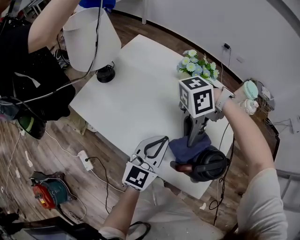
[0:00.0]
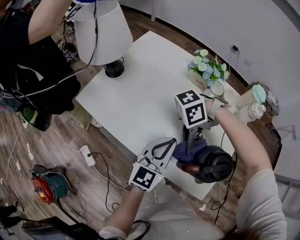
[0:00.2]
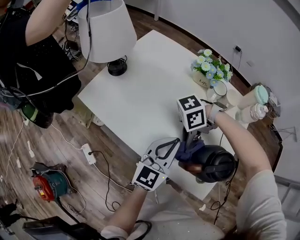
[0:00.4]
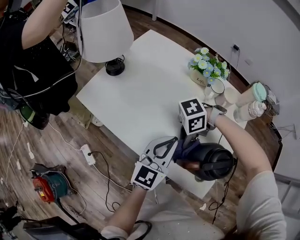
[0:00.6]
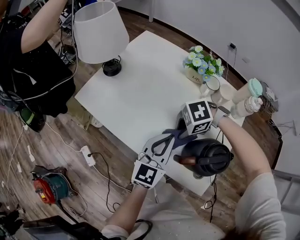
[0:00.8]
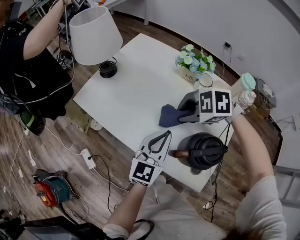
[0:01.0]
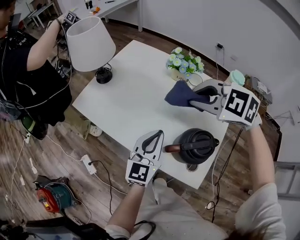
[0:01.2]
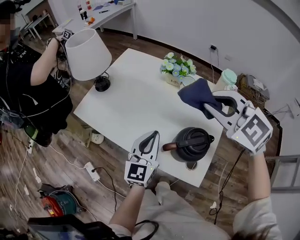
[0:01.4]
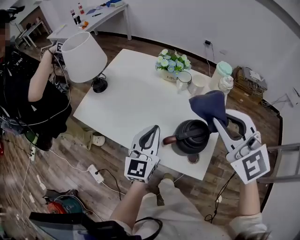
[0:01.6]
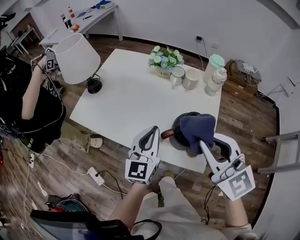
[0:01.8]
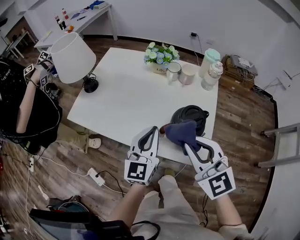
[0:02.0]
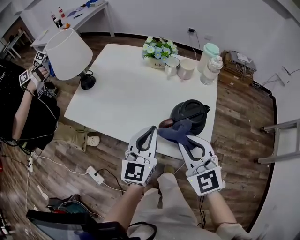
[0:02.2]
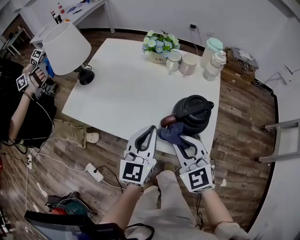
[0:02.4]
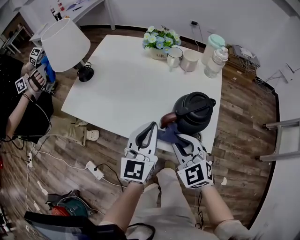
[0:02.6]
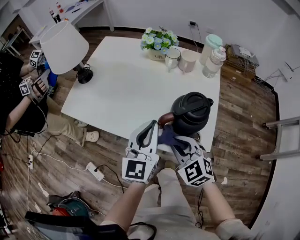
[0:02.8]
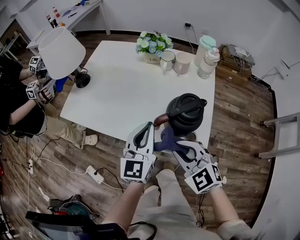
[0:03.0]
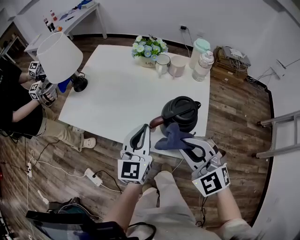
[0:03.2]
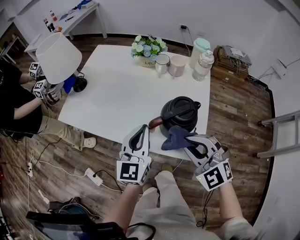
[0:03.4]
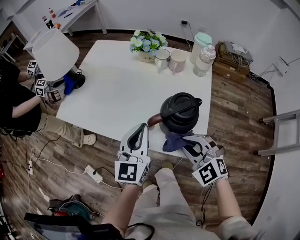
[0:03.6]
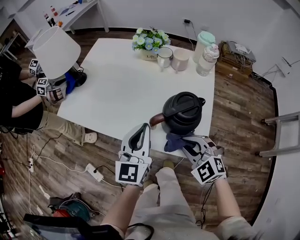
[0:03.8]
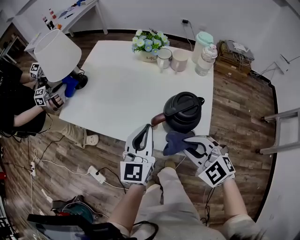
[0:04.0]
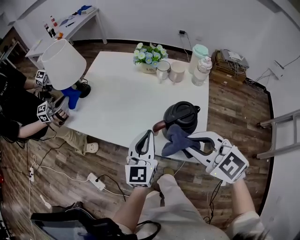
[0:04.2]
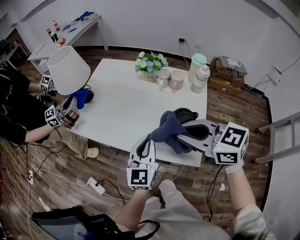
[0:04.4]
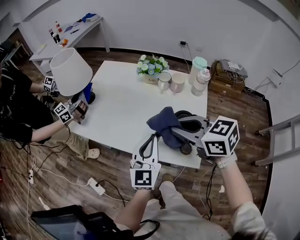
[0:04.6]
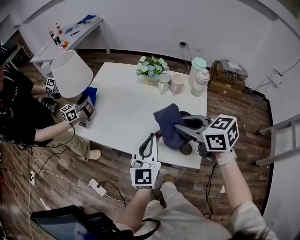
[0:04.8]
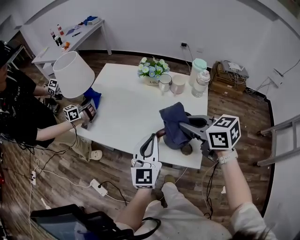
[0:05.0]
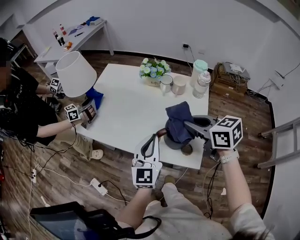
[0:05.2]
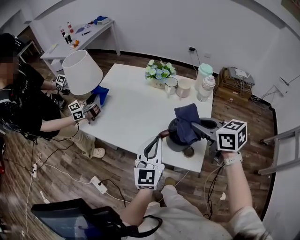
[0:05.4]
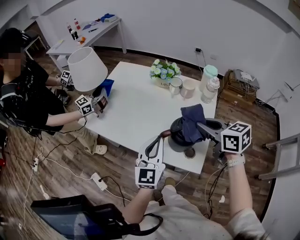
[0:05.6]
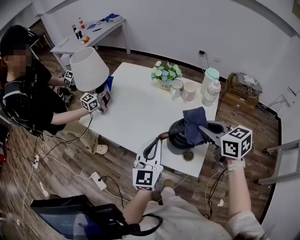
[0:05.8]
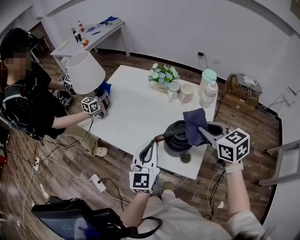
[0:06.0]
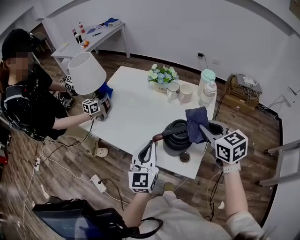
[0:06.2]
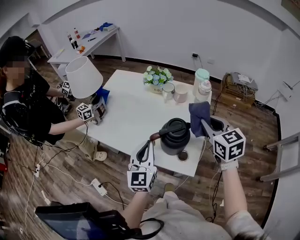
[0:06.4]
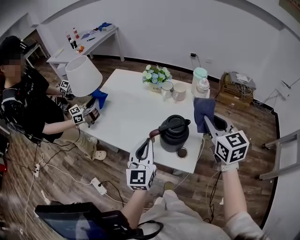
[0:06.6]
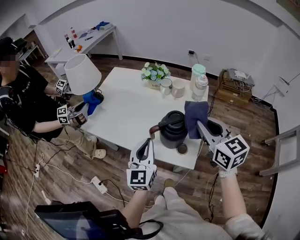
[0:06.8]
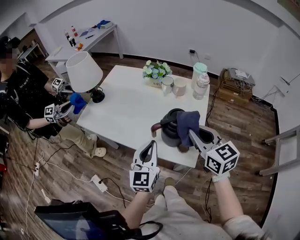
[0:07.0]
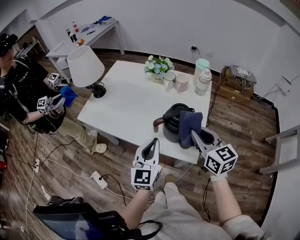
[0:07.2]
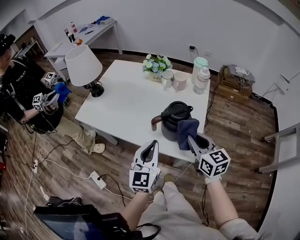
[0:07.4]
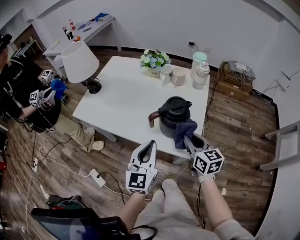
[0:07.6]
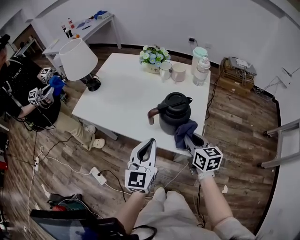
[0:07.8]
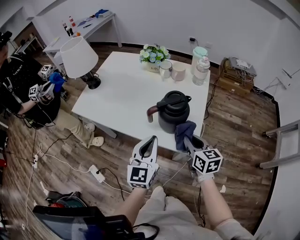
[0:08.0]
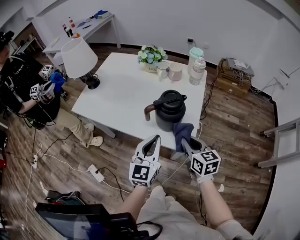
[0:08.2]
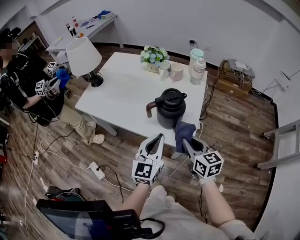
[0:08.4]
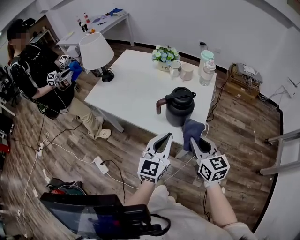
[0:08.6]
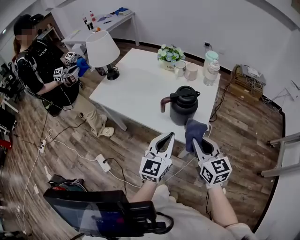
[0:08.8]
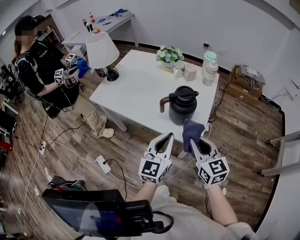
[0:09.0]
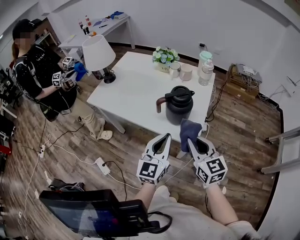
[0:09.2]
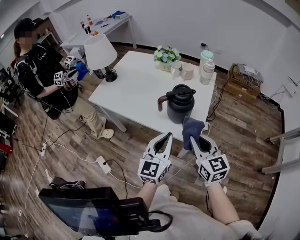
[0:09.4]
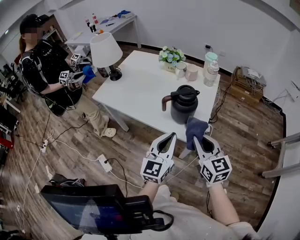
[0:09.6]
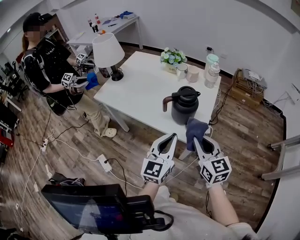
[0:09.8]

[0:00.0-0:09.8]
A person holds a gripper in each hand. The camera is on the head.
0:00.0 to 0:01.4: The right gripper shifts approximately 15 cm upward, and changes its angle by roughly 110 degrees.
0:01.4 to 0:02.8: The right gripper travels downward and backward by approximately 30 cm, and rotates approximately 30 degrees. The left gripper travels backward by roughly 5 cm.
0:02.8 to 0:04.2: The right gripper goes up and down, some 15 cm each way, reversing 2 times.
0:04.2 to 0:05.6: The right gripper goes some 10 cm to the right and forward, and swivels some 40 degrees.
0:05.6 to 0:07.0: The right gripper travels backward by roughly 5 cm, travels to the right and back again, some 10 cm each way, and rotates some 20 degrees.
0:07.0 to 0:08.4: The left gripper moves backward and to the right, about 10 cm; the right gripper is displaced downward and backward by approximately 15 cm.
0:08.4 to 0:09.8: The right gripper heads upward, covering roughly 5 cm; the left gripper shifts some 5 cm backward.

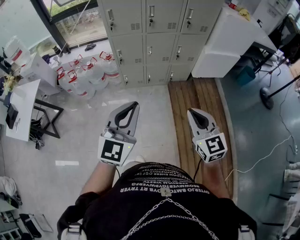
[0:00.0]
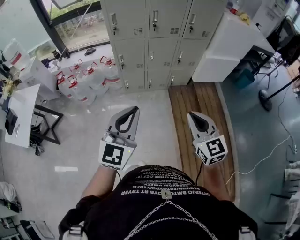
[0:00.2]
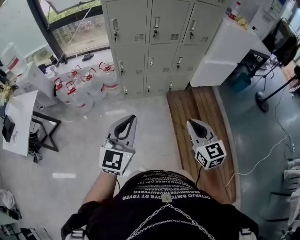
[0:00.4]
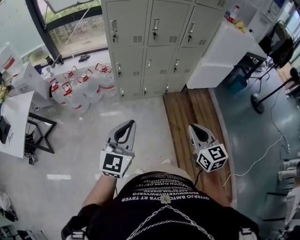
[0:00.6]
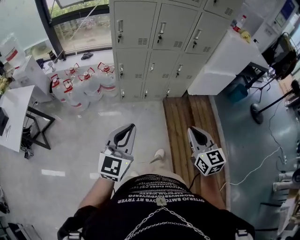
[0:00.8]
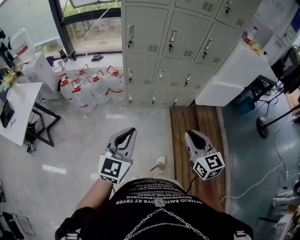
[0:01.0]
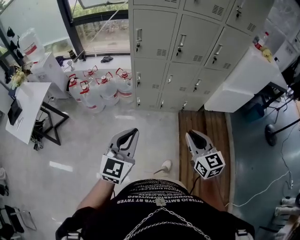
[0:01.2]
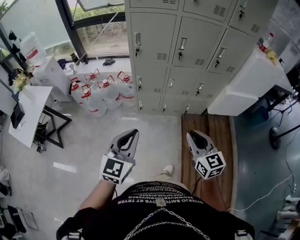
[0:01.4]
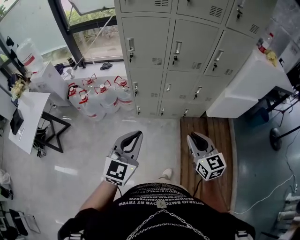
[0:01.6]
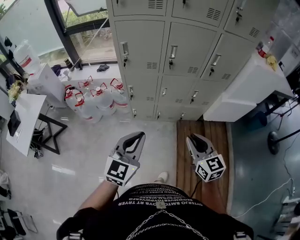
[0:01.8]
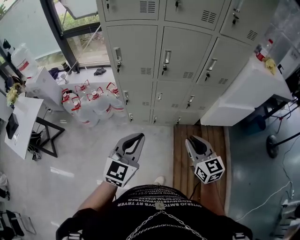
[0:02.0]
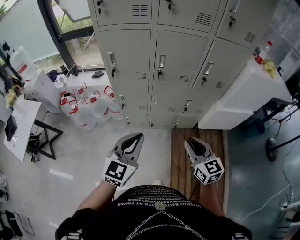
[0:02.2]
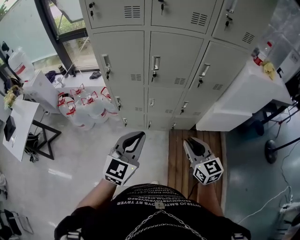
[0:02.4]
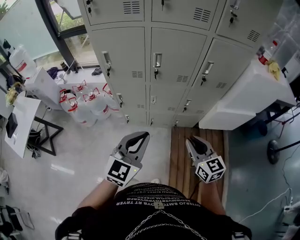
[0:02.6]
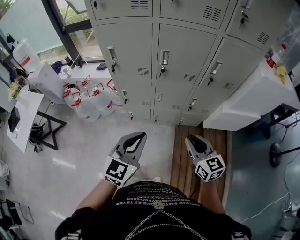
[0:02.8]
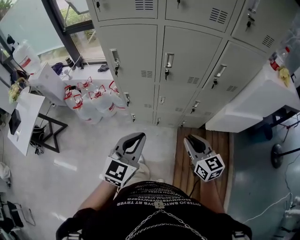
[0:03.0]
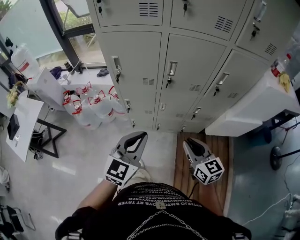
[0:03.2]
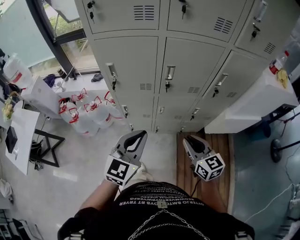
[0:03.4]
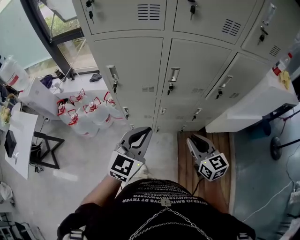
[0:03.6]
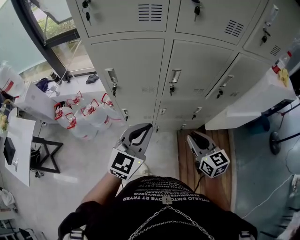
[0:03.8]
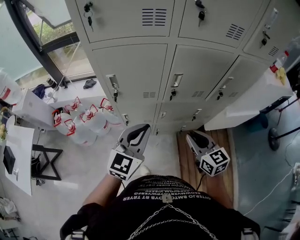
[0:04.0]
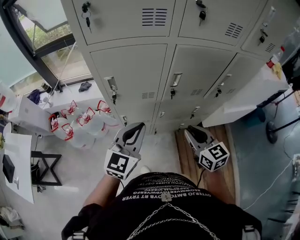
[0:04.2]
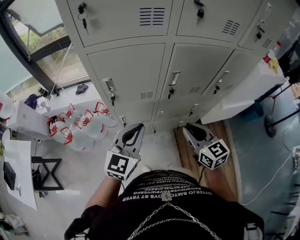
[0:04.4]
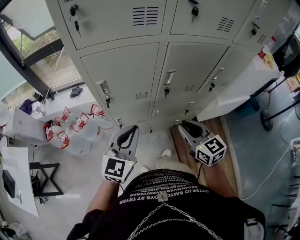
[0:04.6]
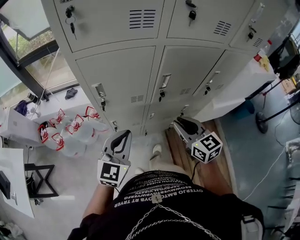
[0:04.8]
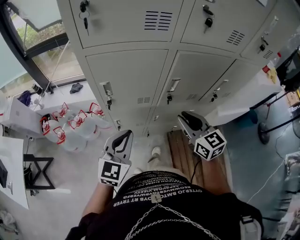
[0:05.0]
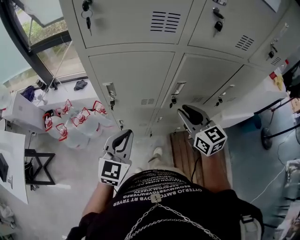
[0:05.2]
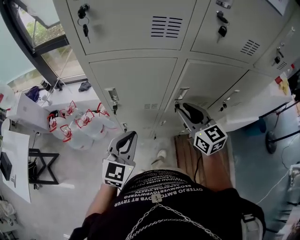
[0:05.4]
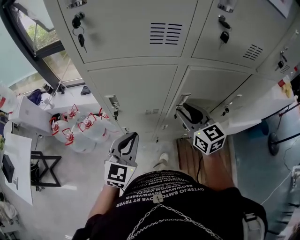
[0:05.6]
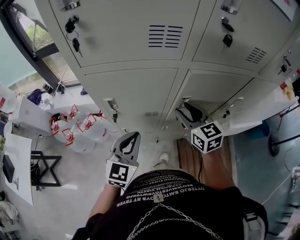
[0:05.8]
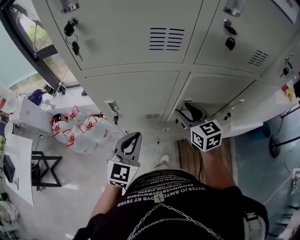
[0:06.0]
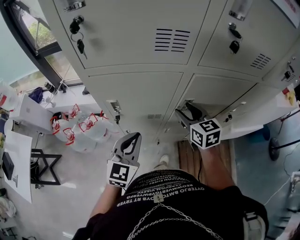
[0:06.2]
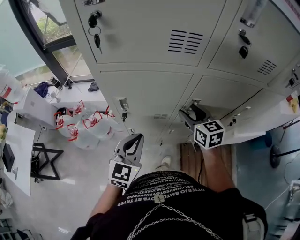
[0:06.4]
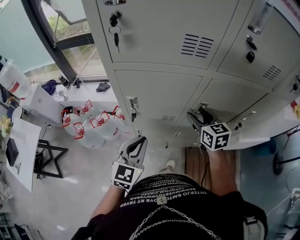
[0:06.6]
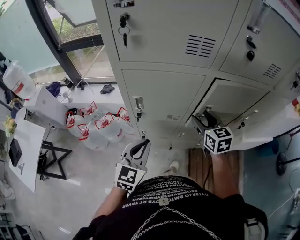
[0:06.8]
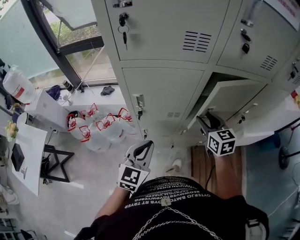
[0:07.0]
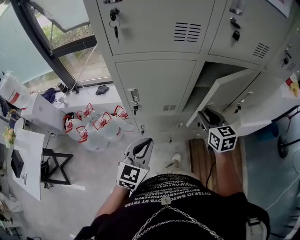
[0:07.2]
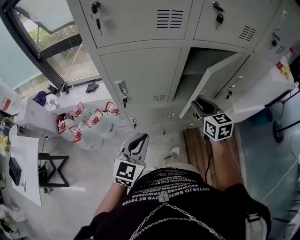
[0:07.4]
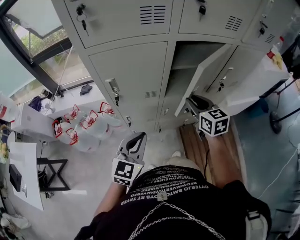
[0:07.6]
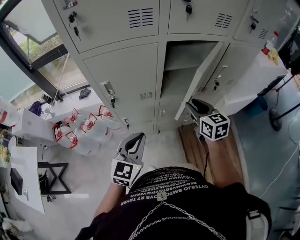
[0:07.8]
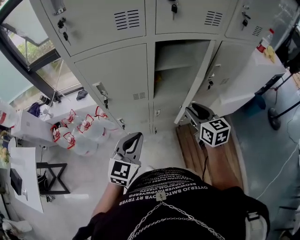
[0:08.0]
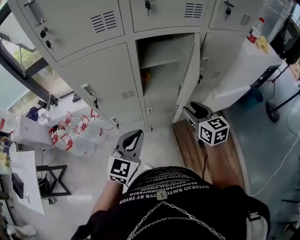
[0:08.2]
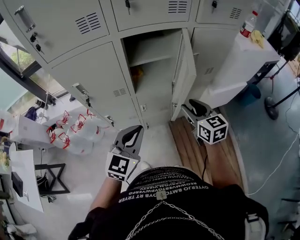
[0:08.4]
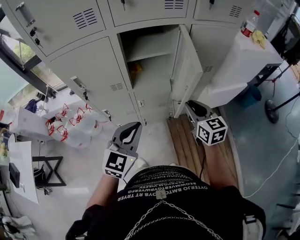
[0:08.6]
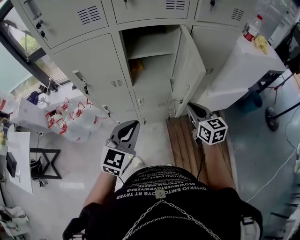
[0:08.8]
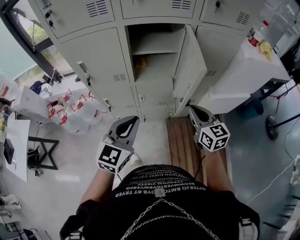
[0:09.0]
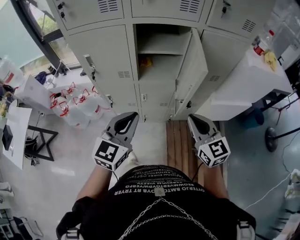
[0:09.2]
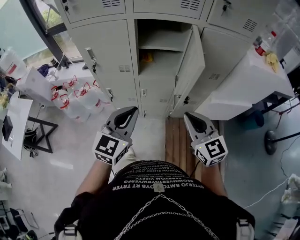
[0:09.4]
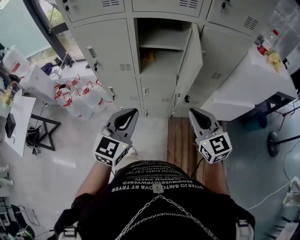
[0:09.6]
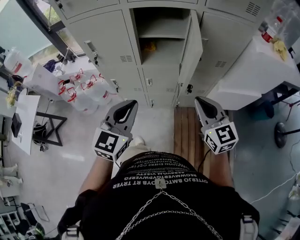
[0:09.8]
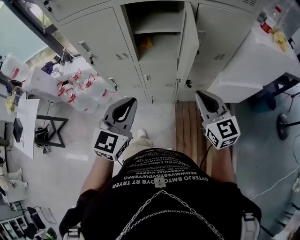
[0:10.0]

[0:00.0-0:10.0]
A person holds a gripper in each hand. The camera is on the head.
0:00.0 to 0:01.4: The right gripper heads forward and to the left, covering roughly 20 cm, while the left gripper travels forward, to the left and downward by about 20 cm.
0:01.4 to 0:02.8: The two grippers go roughly 25 cm forward and to the right.
0:02.8 to 0:04.2: Both grippers move forward and to the left, about 25 cm.
0:04.2 to 0:05.8: The right gripper moves forward, some 20 cm, and opens. The left gripper moves forward, about 10 cm.
0:05.8 to 0:07.2: Both grippers travel together backward, approximately 5 cm.
0:07.2 to 0:08.6: The left gripper travels to the right by approximately 20 cm, while the right gripper travels to the right and backward by about 25 cm.
0:08.6 to 0:10.0: The left gripper moves approximately 5 cm, while the right gripper heads backward, covering roughly 5 cm, and turns by about 20 degrees.

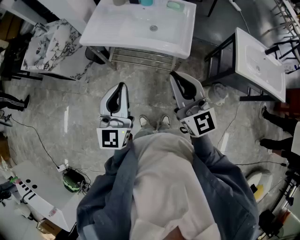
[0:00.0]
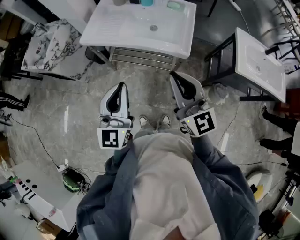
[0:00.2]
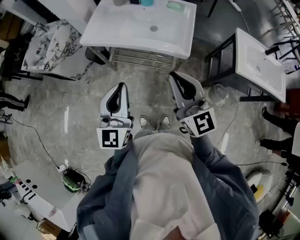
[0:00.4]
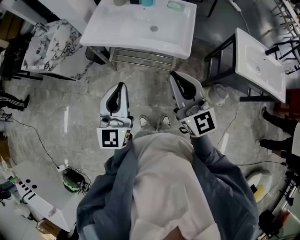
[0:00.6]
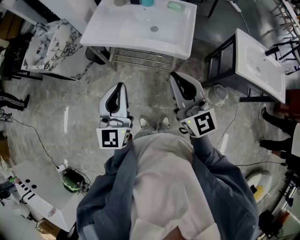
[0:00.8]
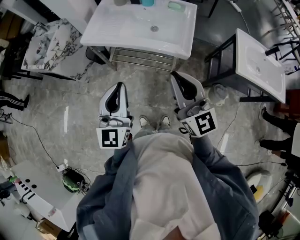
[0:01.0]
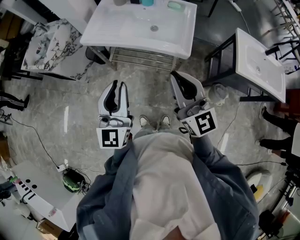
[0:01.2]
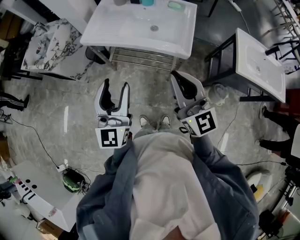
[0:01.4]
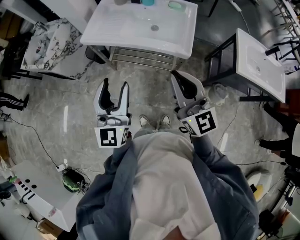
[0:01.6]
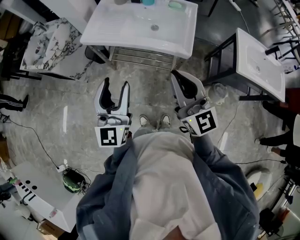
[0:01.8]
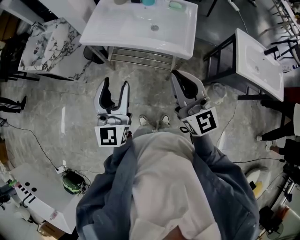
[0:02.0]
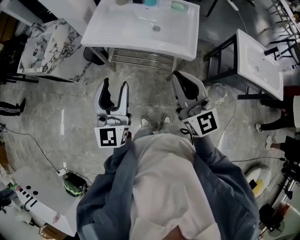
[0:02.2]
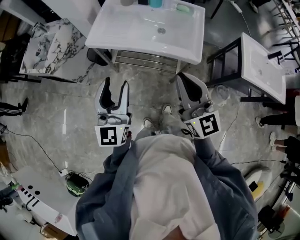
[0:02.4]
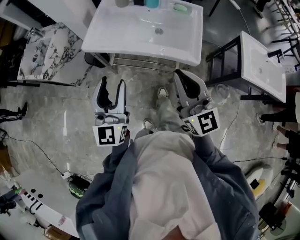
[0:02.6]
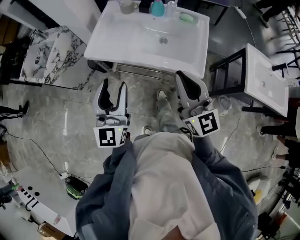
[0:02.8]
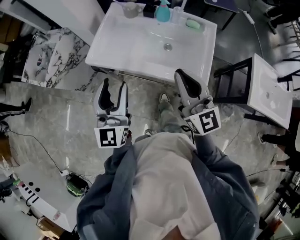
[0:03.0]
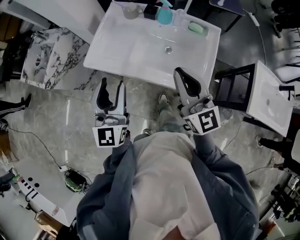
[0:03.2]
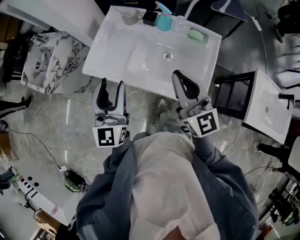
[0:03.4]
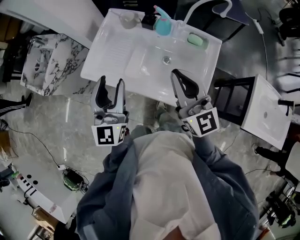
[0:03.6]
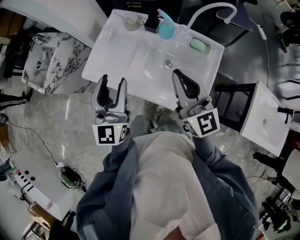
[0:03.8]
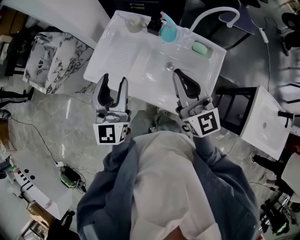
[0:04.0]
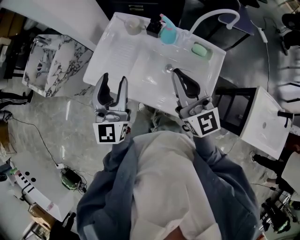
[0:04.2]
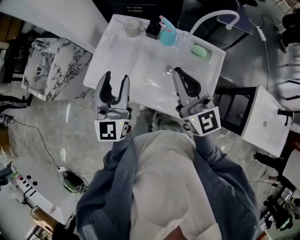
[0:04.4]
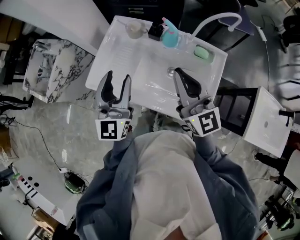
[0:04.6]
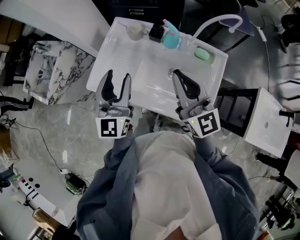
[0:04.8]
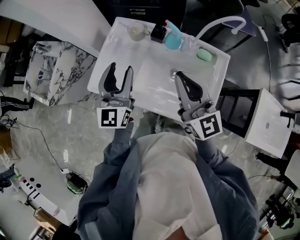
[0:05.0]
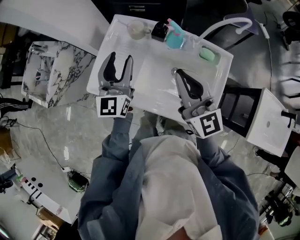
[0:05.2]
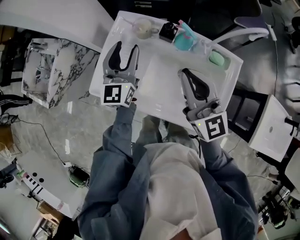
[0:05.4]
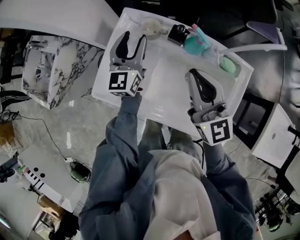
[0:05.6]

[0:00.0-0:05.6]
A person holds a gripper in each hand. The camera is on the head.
0:00.0 to 0:01.4: The left gripper opens up.
0:01.4 to 0:02.8: Both grippers travel together forward, approximately 15 cm.
0:02.8 to 0:04.2: Both grippers move forward, roughly 25 cm.
0:04.2 to 0:05.6: The left gripper travels forward and downward by some 30 cm. Meanwhile the right gripper travels forward and downward by some 15 cm.
